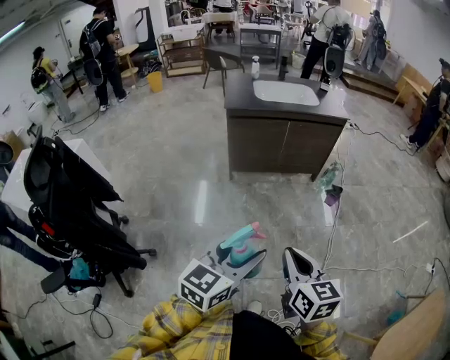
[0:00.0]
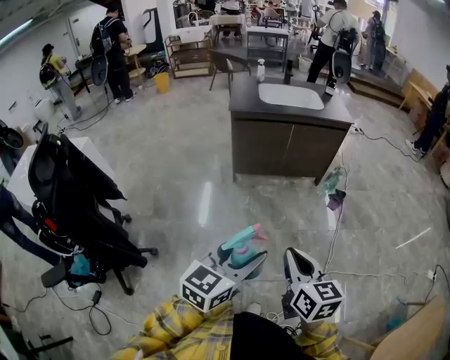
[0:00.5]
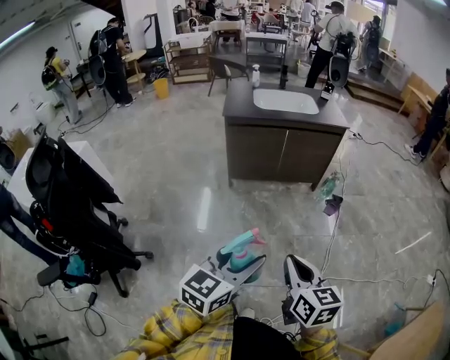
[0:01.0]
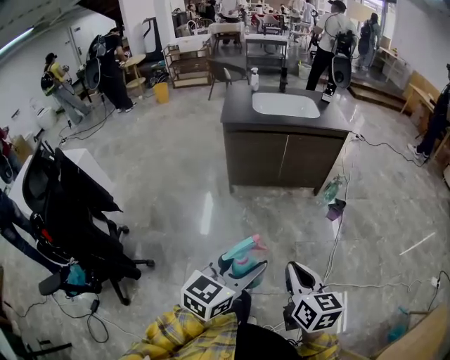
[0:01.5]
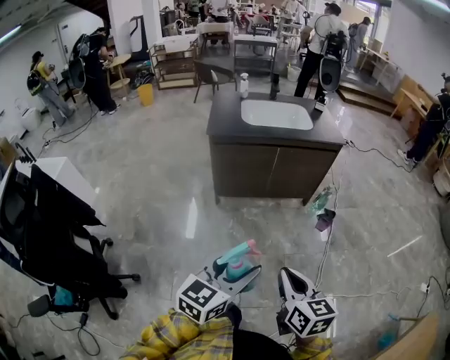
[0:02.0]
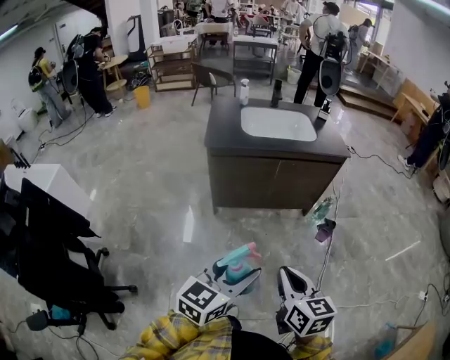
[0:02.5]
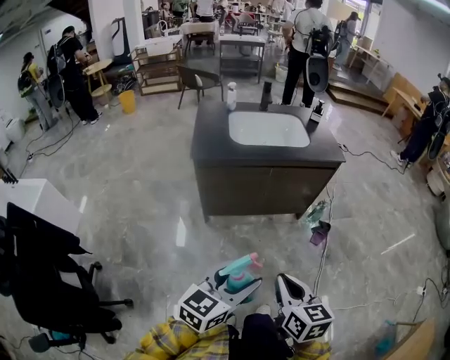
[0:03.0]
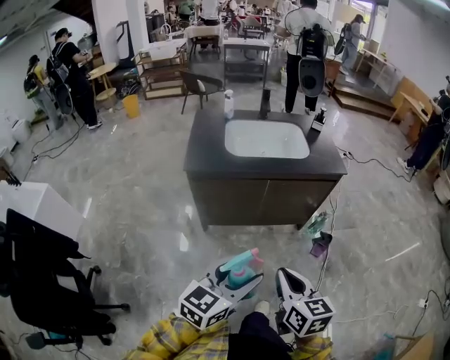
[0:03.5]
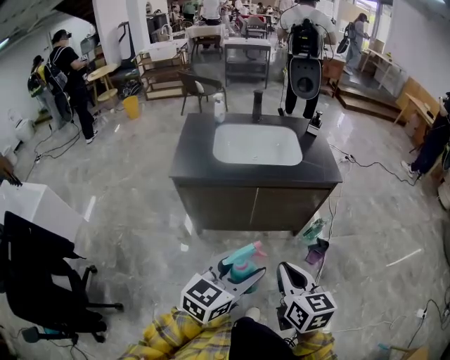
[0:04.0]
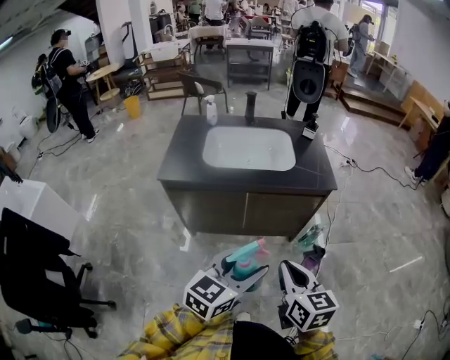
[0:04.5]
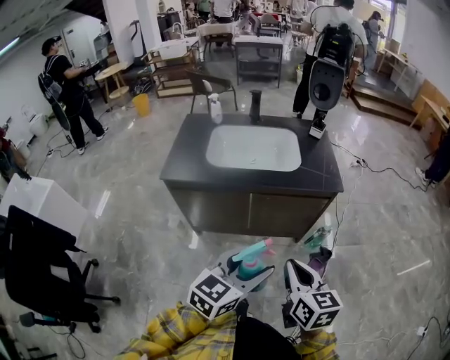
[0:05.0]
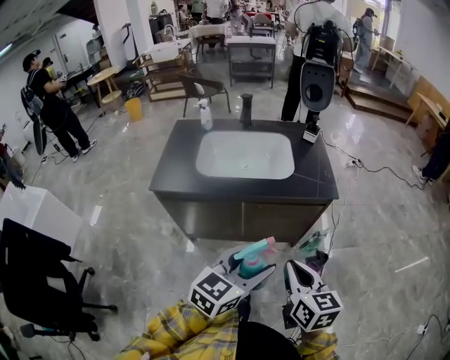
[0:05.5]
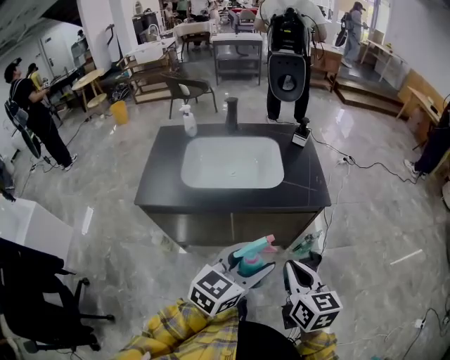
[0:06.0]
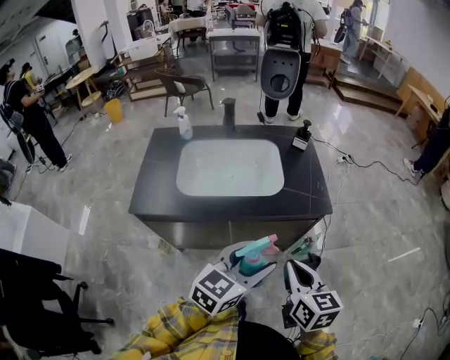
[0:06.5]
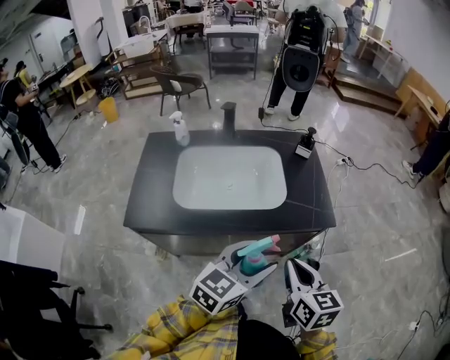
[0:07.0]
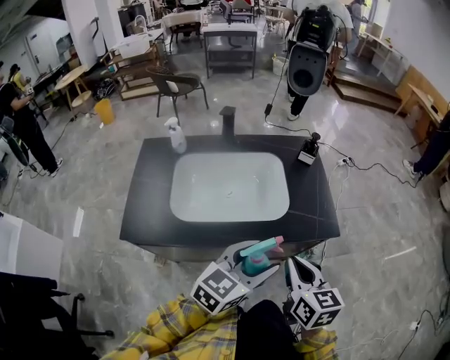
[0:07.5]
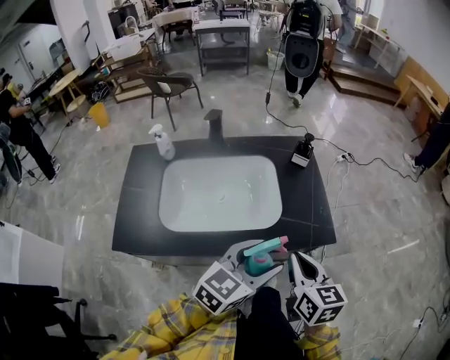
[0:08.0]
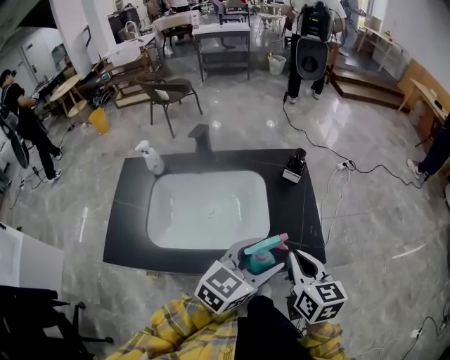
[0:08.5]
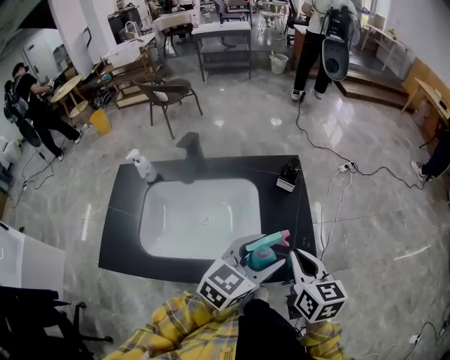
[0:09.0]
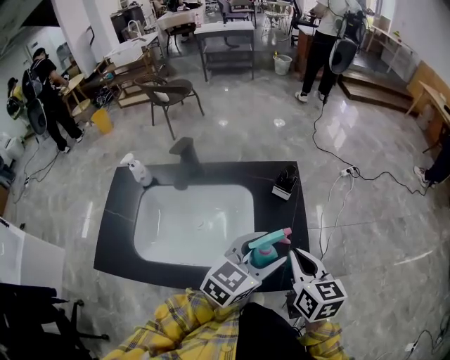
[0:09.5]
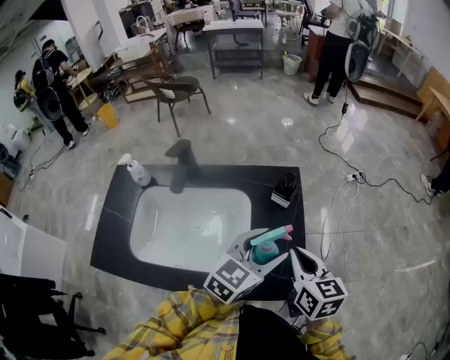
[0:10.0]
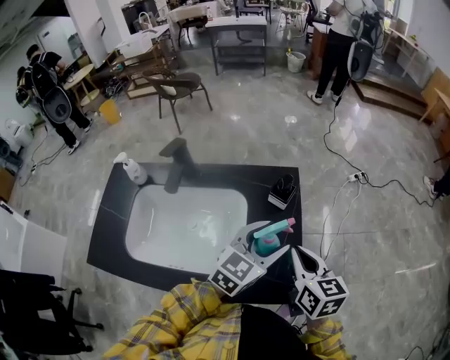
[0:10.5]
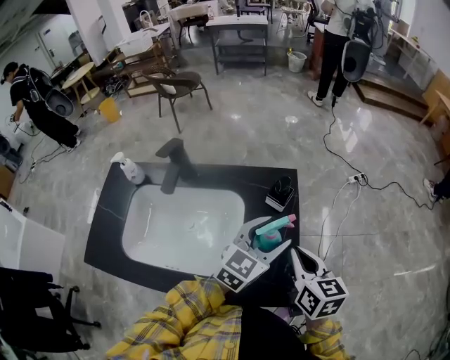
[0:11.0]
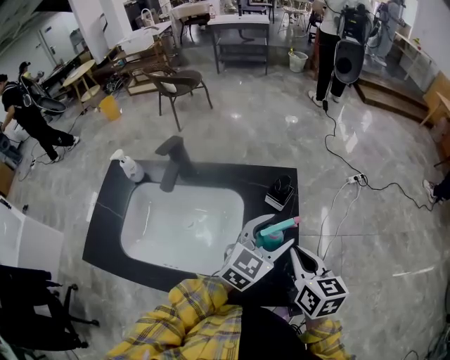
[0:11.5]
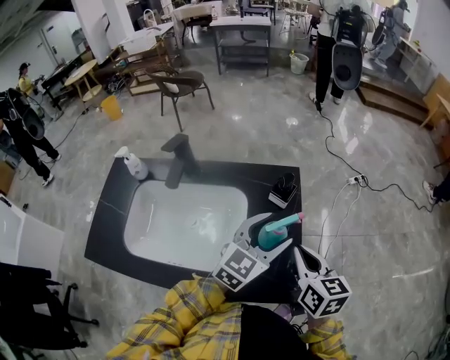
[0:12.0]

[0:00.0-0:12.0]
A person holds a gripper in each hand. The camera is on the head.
0:00.0 to 0:02.0: Both grippers travel together forward, approximately 15 cm.
0:02.0 to 0:04.0: Both grippers travel together forward, some 35 cm.
0:04.0 to 0:06.0: Both grippers move forward and to the right, roughly 25 cm.
0:06.0 to 0:08.0: Both grippers move forward, approximately 25 cm.
0:08.0 to 0:10.0: Both grippers move forward, some 25 cm.
0:10.0 to 0:12.0: The left gripper goes approximately 5 cm forward.

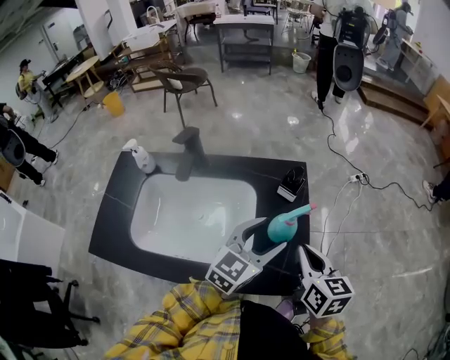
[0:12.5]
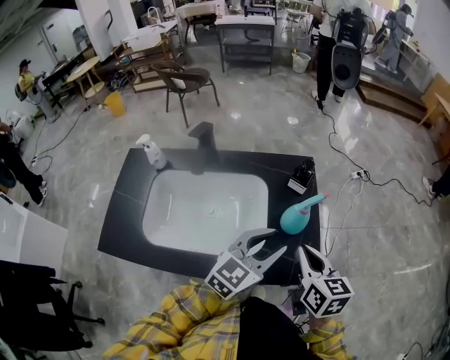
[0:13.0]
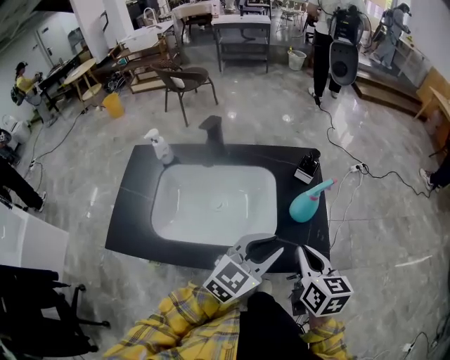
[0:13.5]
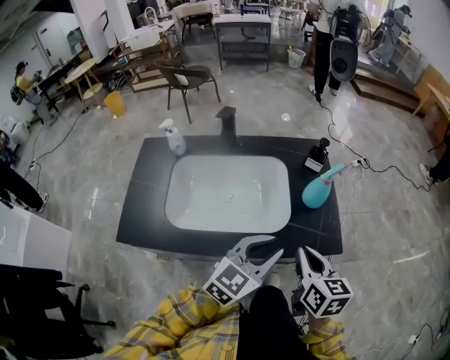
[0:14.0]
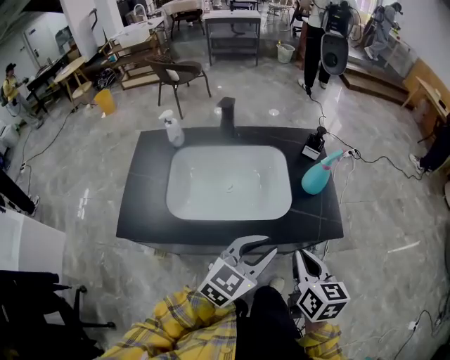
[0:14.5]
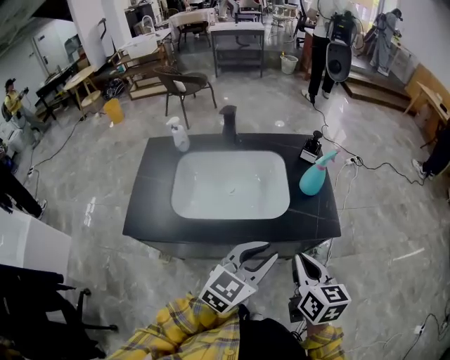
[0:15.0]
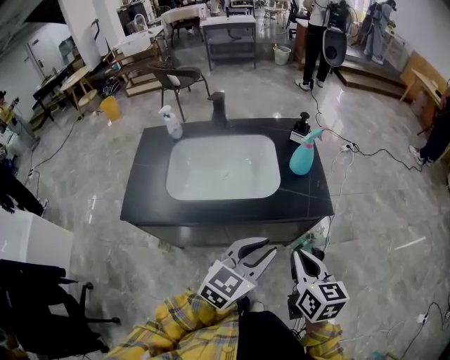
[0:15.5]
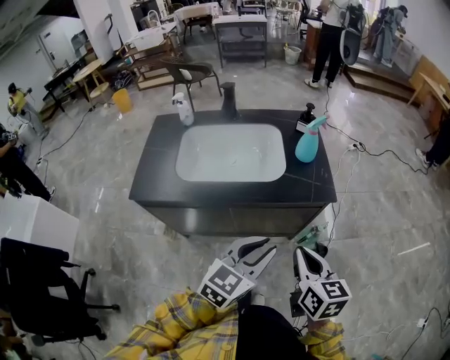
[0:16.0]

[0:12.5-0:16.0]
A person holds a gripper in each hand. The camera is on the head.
0:12.5 to 0:14.5: The grippers both shift backward and to the left by about 25 cm. The left gripper closes its fingers.
0:14.5 to 0:16.0: Both grippers travel together backward and to the right, roughly 15 cm.

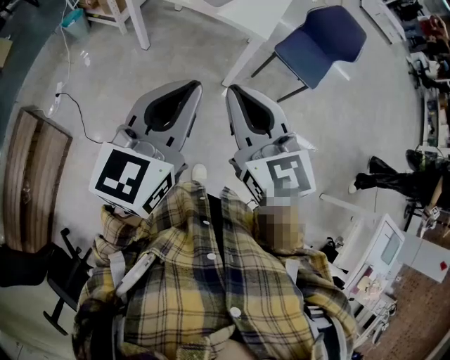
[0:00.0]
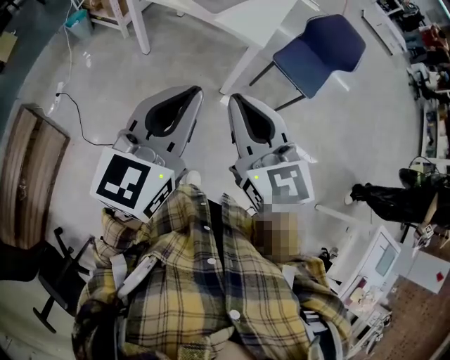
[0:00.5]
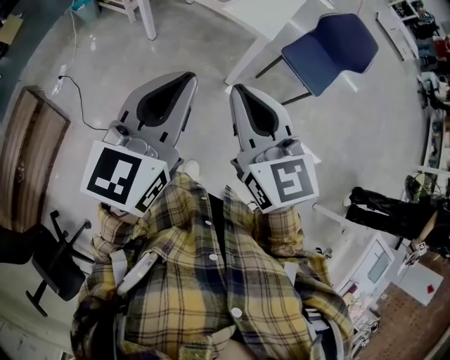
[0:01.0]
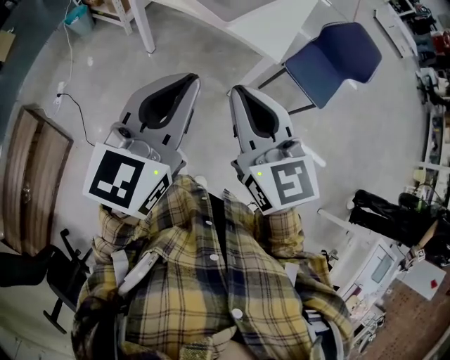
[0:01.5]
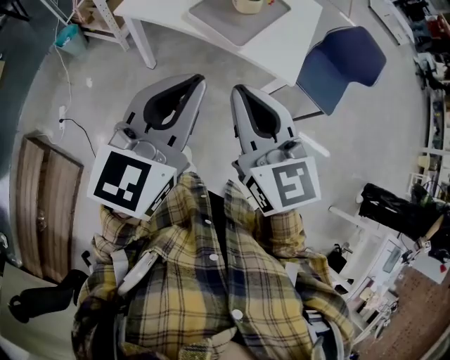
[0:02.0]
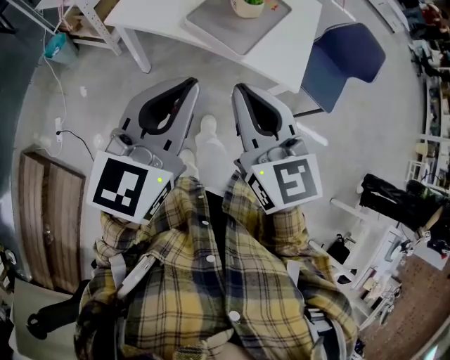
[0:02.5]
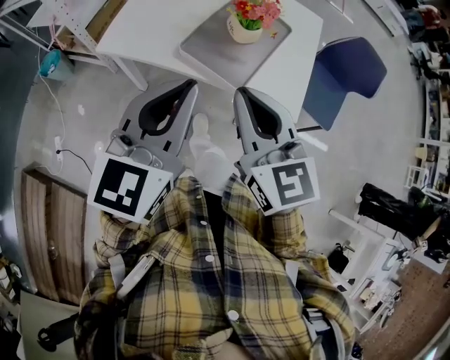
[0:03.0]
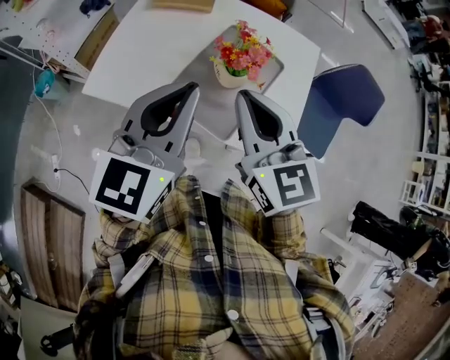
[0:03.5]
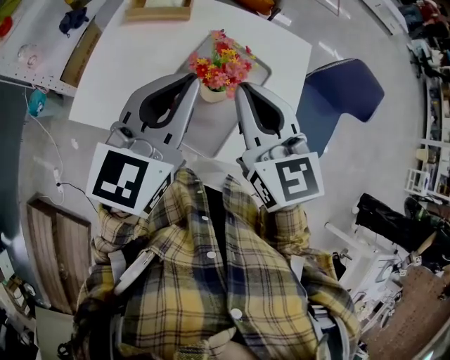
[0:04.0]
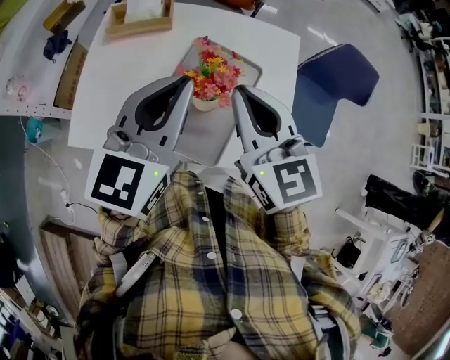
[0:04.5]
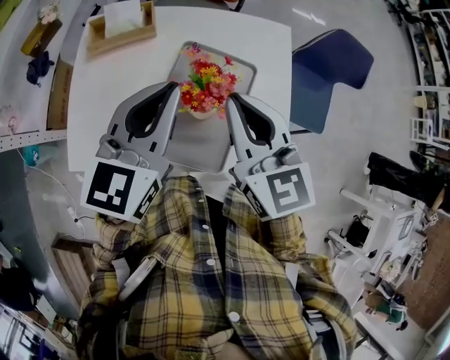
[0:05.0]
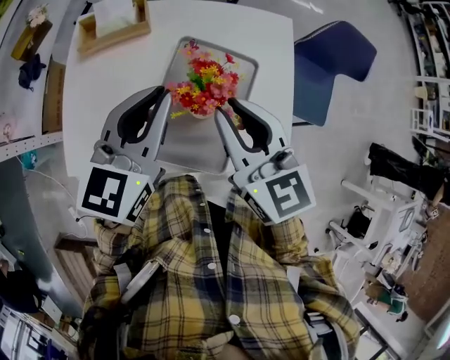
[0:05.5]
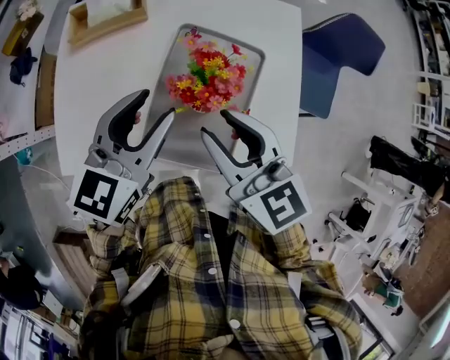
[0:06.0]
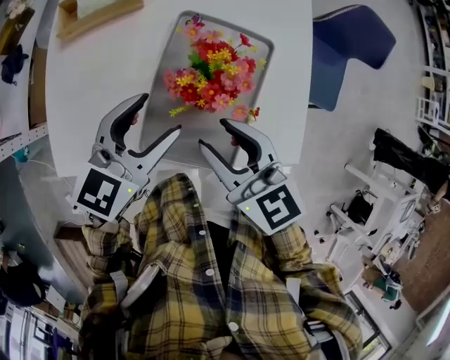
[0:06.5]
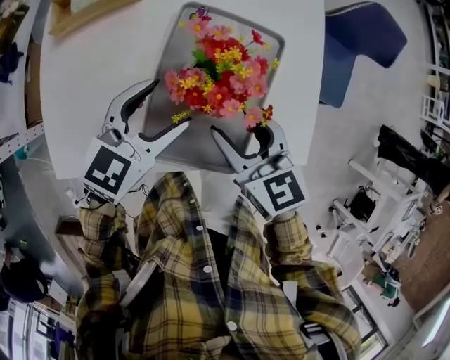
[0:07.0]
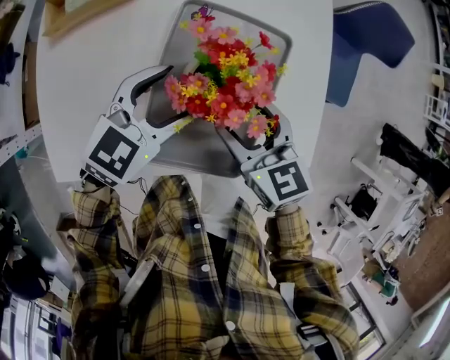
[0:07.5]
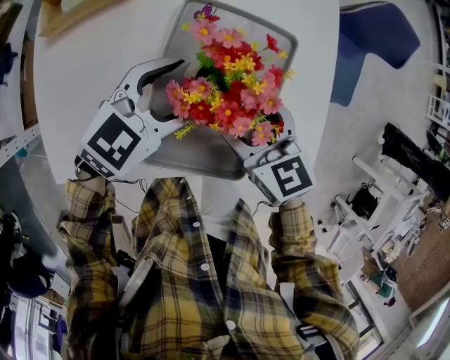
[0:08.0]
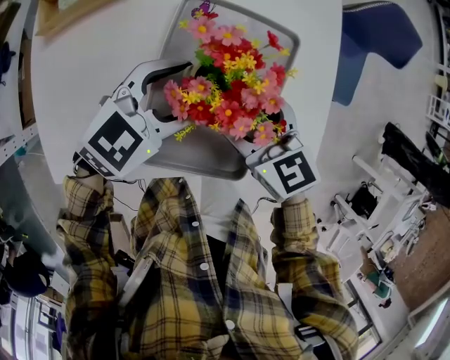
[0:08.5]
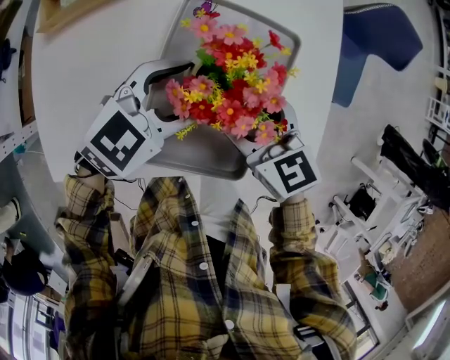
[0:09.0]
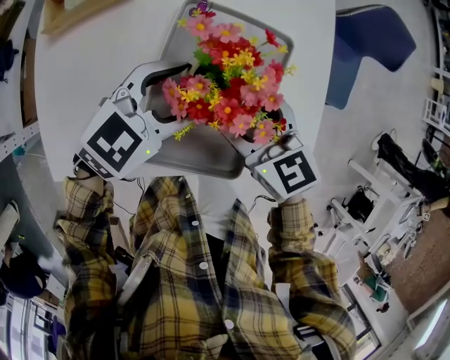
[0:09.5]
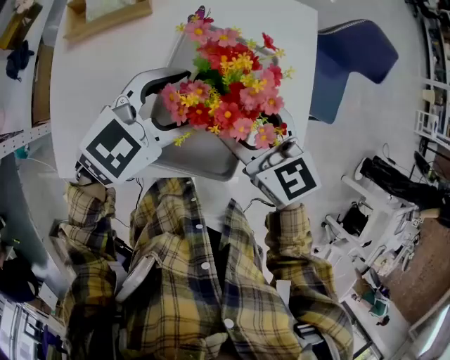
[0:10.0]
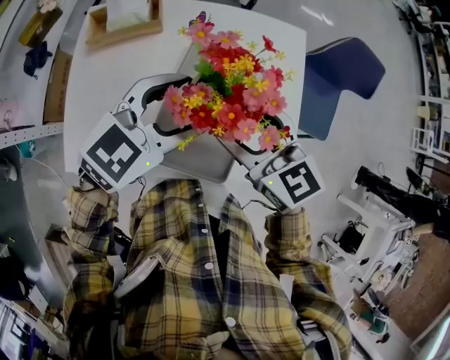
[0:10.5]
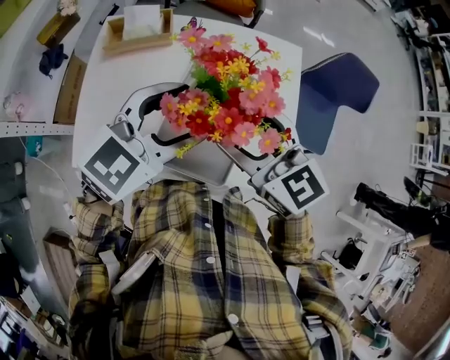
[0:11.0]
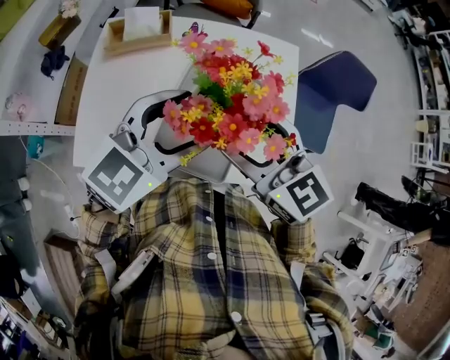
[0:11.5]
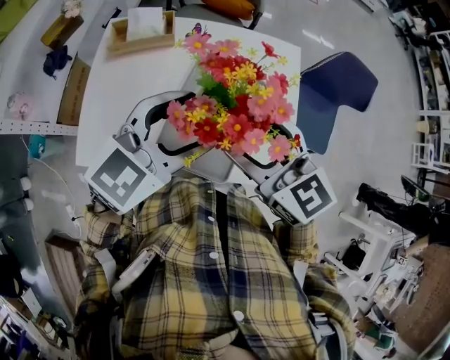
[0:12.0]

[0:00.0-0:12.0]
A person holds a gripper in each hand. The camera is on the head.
0:00.0 to 0:02.0: The grippers both shift forward and to the left by approximately 25 cm.
0:02.0 to 0:04.0: The pair of grippers is taken forward, roughly 40 cm.
0:04.0 to 0:06.0: The right gripper goes some 10 cm downward, and opens up, while the left gripper heads downward and forward, covering about 15 cm, changes its angle by roughly 20 degrees, and opens its fingers.
0:06.0 to 0:08.0: Both grippers travel together downward, roughly 15 cm. The left gripper turns by some 30 degrees, and opens its fingers; the right gripper opens its fingers.
0:08.0 to 0:12.0: The grippers make only small movements.
